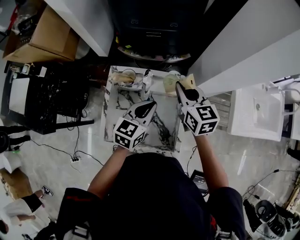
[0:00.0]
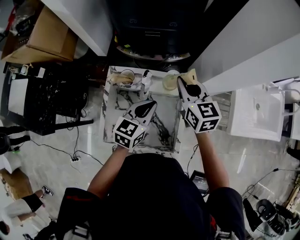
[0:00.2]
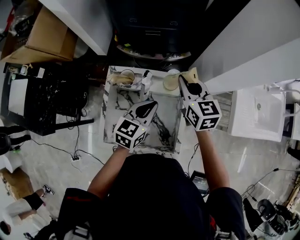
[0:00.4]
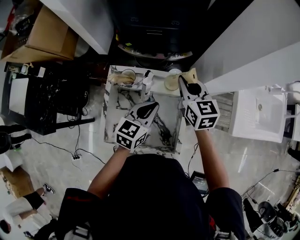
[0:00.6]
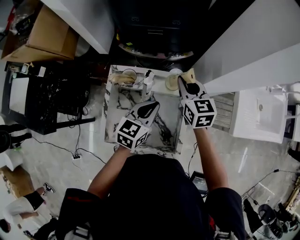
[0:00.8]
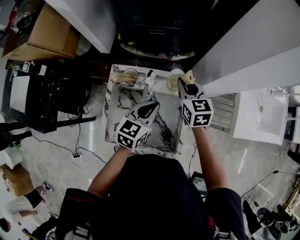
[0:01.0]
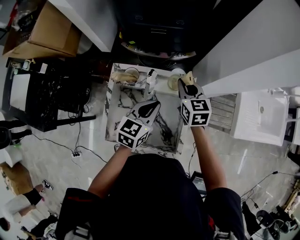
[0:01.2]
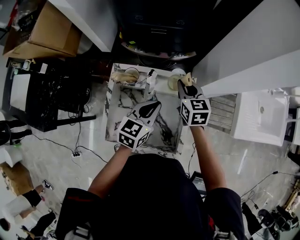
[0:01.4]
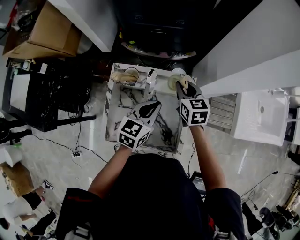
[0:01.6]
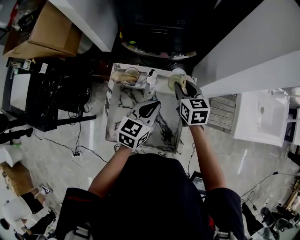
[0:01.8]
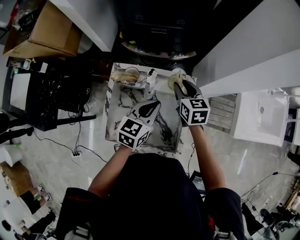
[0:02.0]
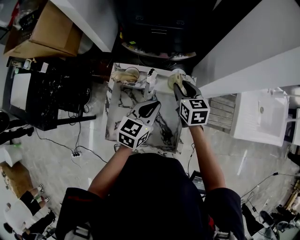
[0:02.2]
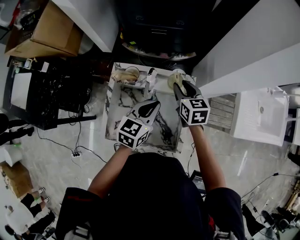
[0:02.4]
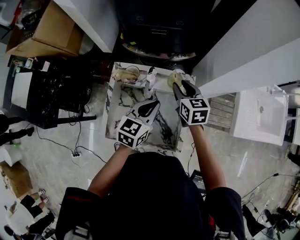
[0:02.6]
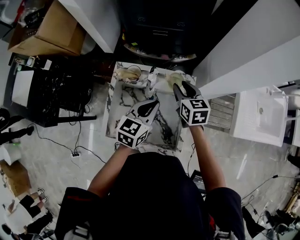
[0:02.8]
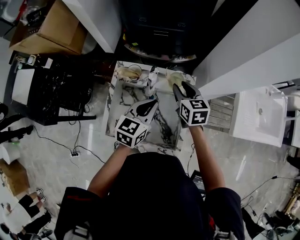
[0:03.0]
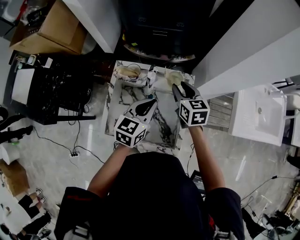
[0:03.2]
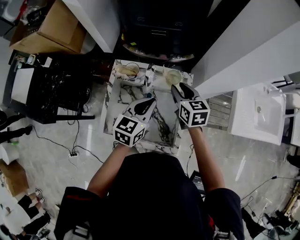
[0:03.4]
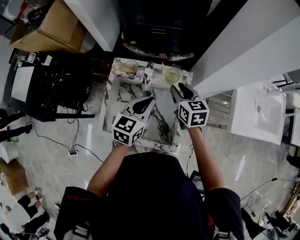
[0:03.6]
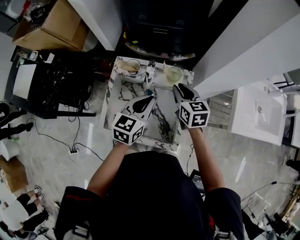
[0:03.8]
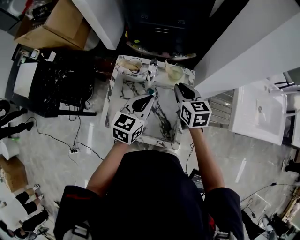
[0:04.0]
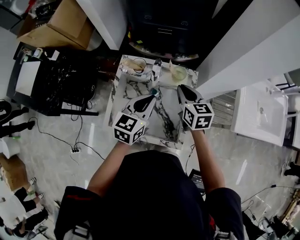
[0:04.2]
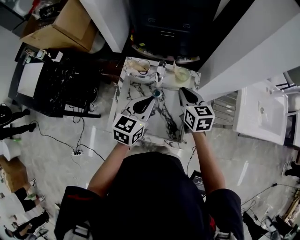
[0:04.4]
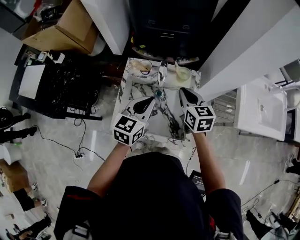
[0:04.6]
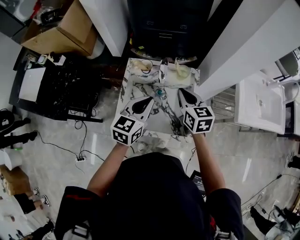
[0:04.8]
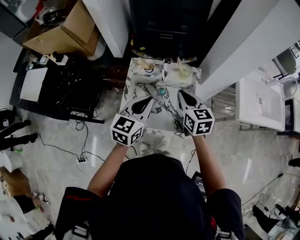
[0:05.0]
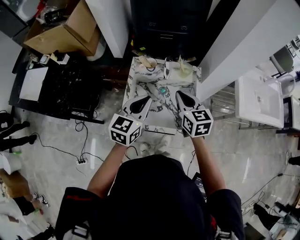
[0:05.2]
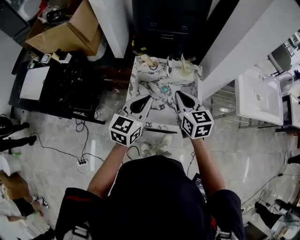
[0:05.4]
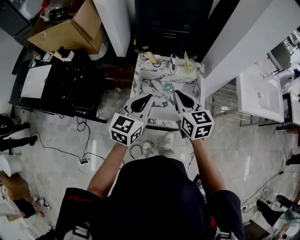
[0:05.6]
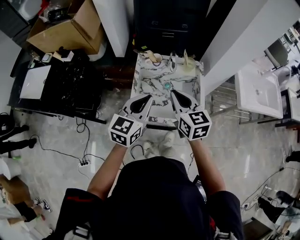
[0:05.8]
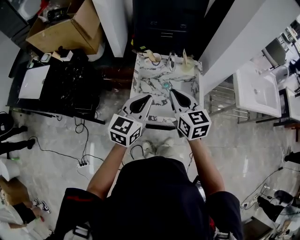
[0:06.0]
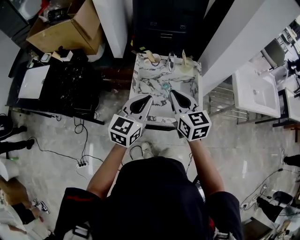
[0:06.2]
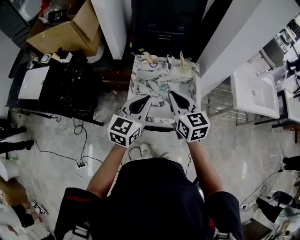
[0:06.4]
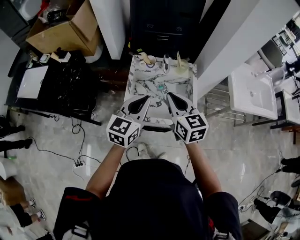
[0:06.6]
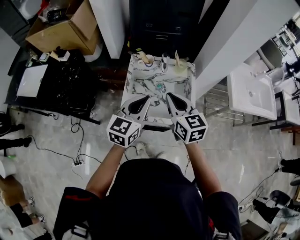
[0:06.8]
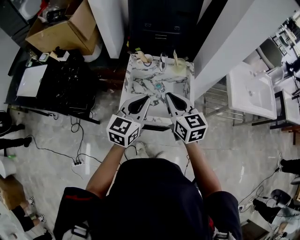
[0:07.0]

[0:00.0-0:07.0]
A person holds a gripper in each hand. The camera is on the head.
0:00.0 to 0:01.4: The right gripper travels downward by some 10 cm.
0:01.4 to 0:02.8: The grippers stay close to where they were, moving slightly.
0:02.8 to 0:04.2: The left gripper changes place by about 5 cm; the right gripper moves backward, some 5 cm.
0:04.2 to 0:05.6: Both grippers move backward, to the left and upward, some 20 cm.
0:05.6 to 0:07.0: The grippers make only small movements.

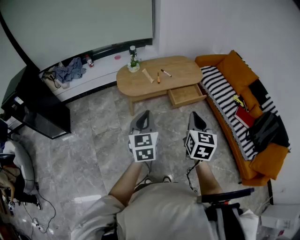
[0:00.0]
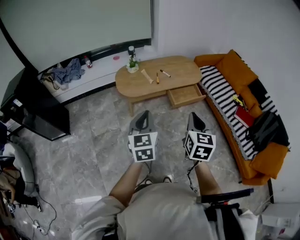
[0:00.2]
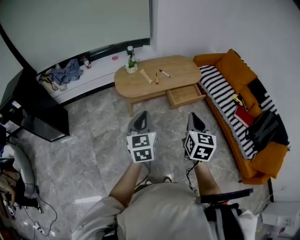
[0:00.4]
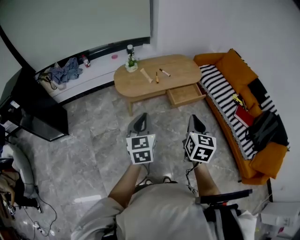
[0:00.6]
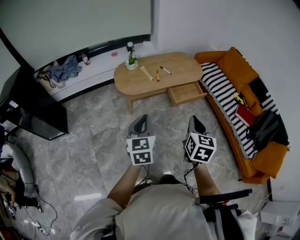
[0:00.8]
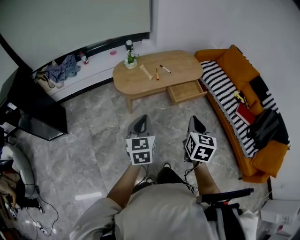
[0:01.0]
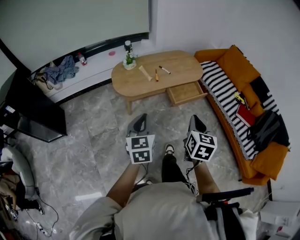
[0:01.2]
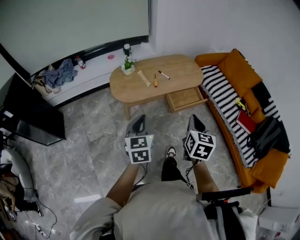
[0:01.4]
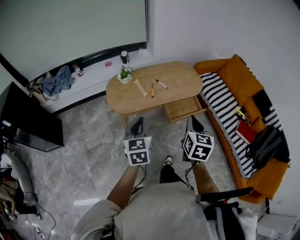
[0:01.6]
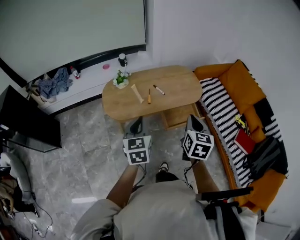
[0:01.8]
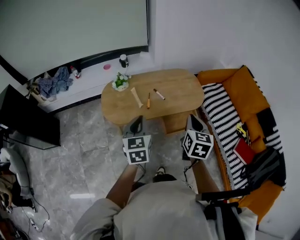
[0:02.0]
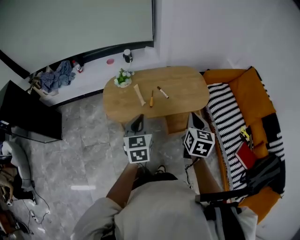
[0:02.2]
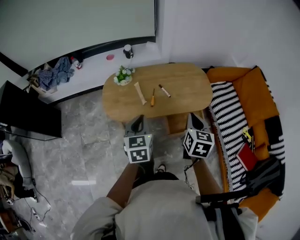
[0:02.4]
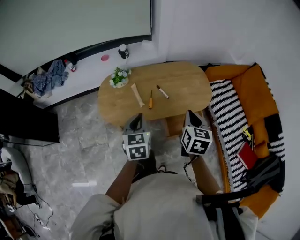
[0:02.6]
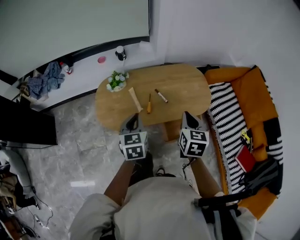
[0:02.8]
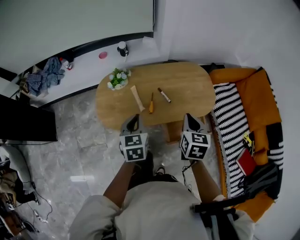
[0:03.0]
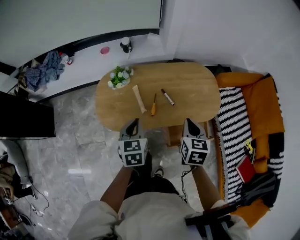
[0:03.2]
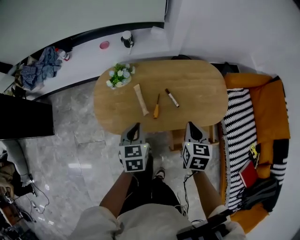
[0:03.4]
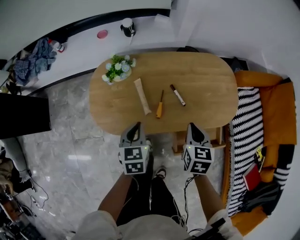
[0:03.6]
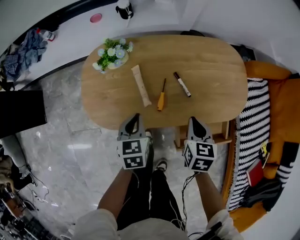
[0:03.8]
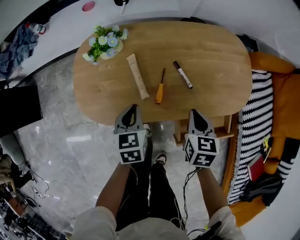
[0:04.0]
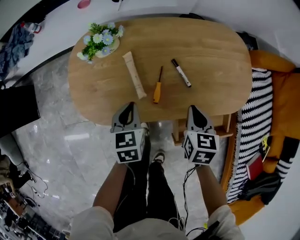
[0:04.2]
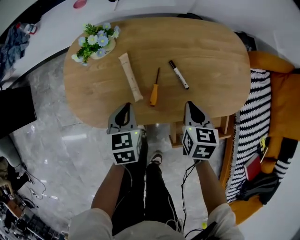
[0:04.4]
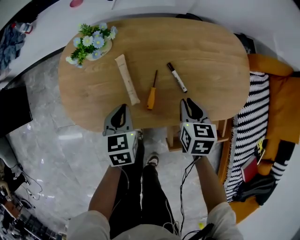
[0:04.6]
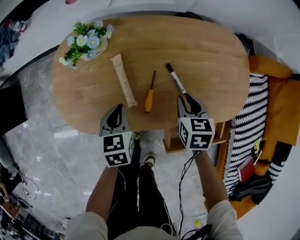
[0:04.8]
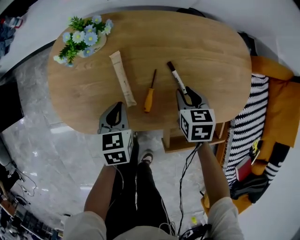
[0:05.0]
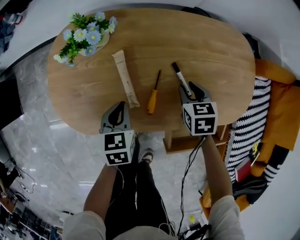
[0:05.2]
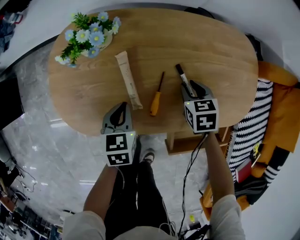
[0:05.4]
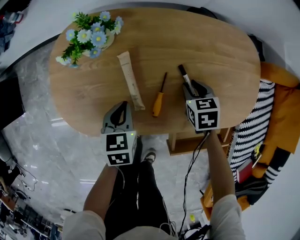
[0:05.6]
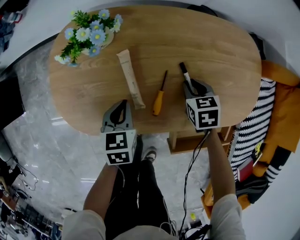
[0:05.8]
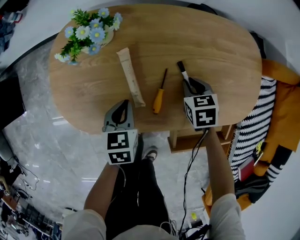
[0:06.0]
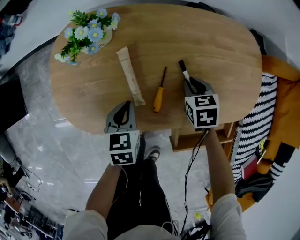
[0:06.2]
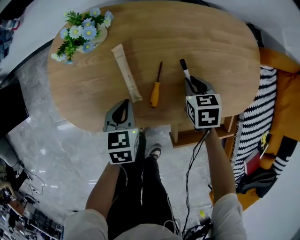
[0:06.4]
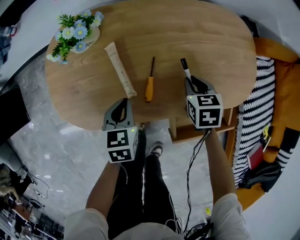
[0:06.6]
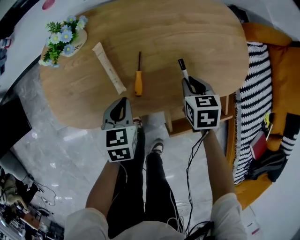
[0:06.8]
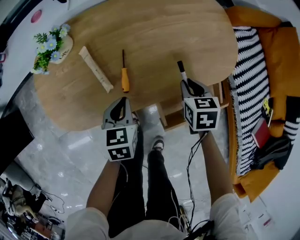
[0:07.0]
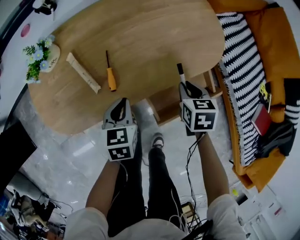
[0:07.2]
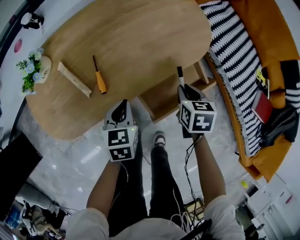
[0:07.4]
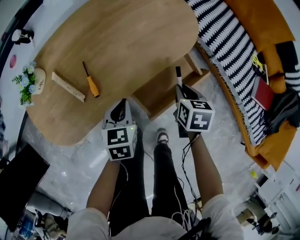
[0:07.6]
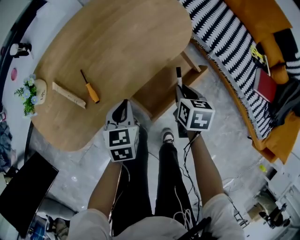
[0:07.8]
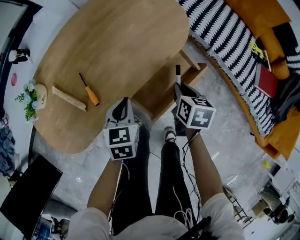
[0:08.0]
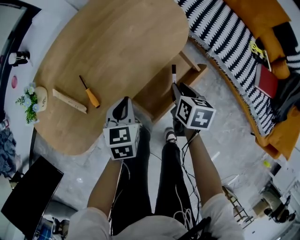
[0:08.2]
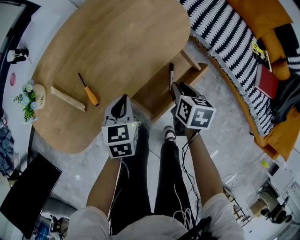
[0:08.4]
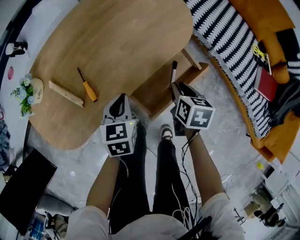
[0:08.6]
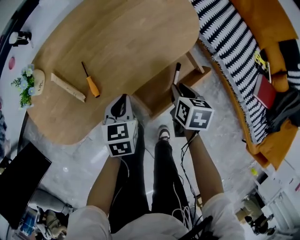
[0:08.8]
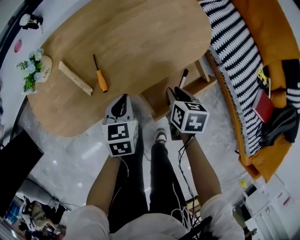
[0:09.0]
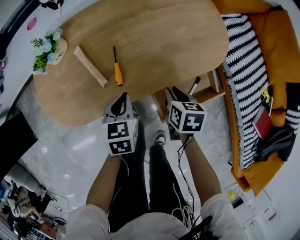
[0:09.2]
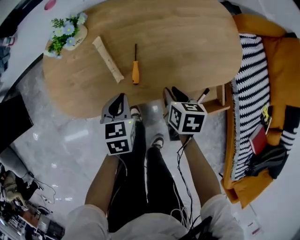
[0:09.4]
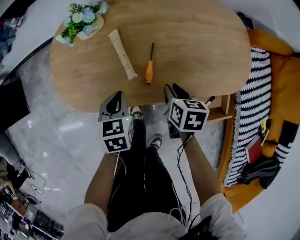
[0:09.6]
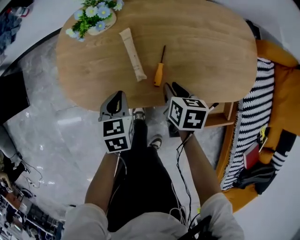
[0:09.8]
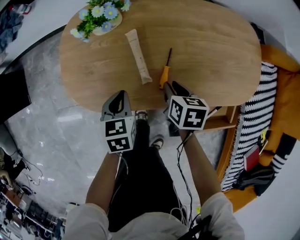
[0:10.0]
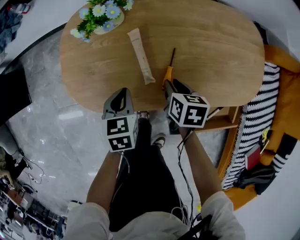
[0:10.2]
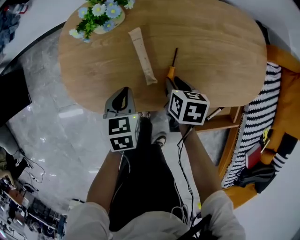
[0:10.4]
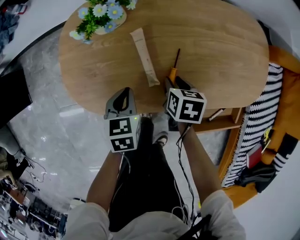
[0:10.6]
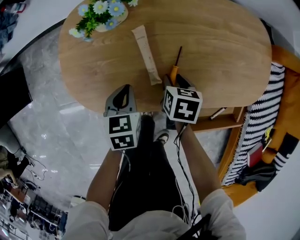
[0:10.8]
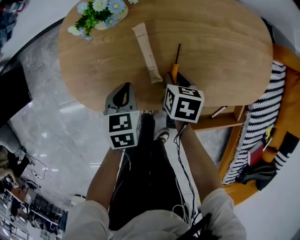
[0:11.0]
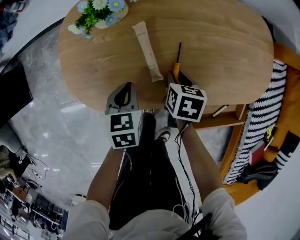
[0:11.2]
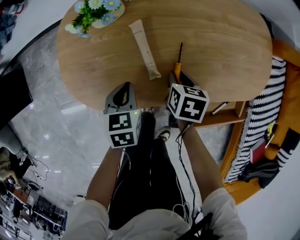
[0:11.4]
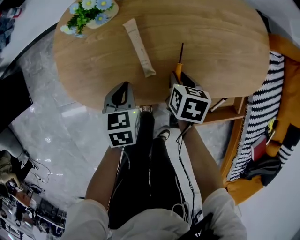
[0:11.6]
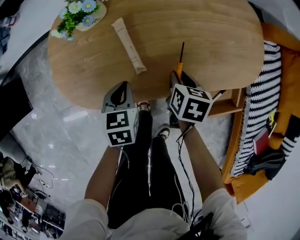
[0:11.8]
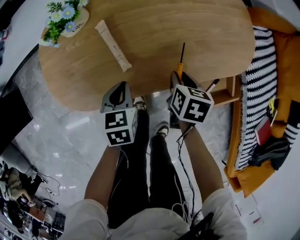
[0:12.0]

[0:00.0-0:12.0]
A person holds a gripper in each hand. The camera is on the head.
0:00.0 to 0:01.6: The grippers both shift forward by approximately 20 cm.
0:01.6 to 0:03.0: Both grippers move forward, about 35 cm.
0:03.0 to 0:04.4: The left gripper moves downward, roughly 30 cm; the right gripper is displaced downward and forward by about 35 cm.
0:04.4 to 0:06.0: The right gripper goes roughly 15 cm downward and forward, and rotates approximately 20 degrees. The left gripper travels downward by roughly 10 cm.
0:06.0 to 0:07.6: The right gripper changes place by about 35 cm, and rotates around the line of its fingers by some 50 degrees, clockwise from behind; the left gripper shifts by roughly 25 cm, and rotates approximately 30 degrees.
0:07.6 to 0:09.0: The right gripper is displaced to the left by approximately 5 cm.
0:09.0 to 0:10.4: The left gripper ends up roughly 25 cm from where it was, and rotates approximately 30 degrees, while the right gripper moves roughly 30 cm, and rotates roughly 30 degrees.
0:10.4 to 0:12.0: The right gripper shifts some 10 cm to the right and backward, while the left gripper heads to the right, covering roughly 10 cm.

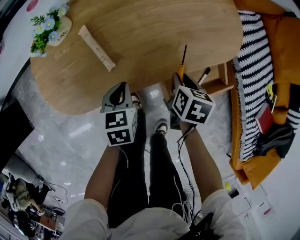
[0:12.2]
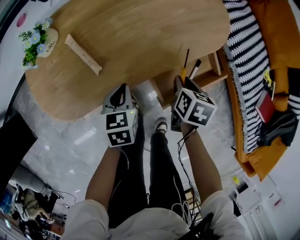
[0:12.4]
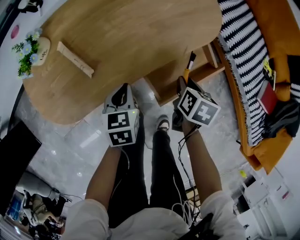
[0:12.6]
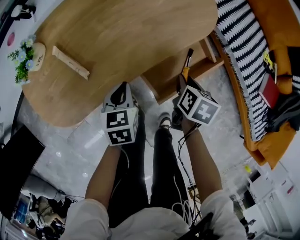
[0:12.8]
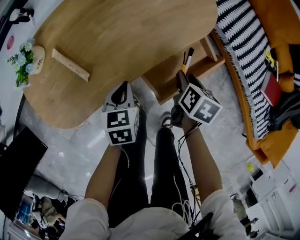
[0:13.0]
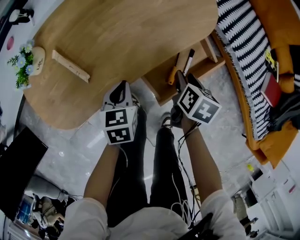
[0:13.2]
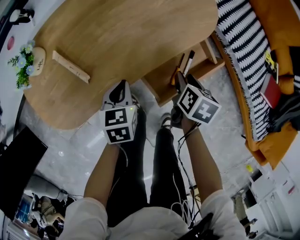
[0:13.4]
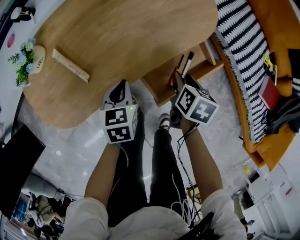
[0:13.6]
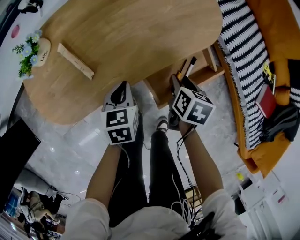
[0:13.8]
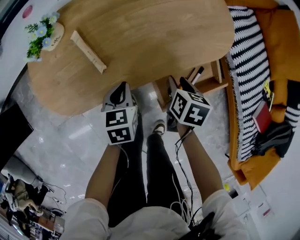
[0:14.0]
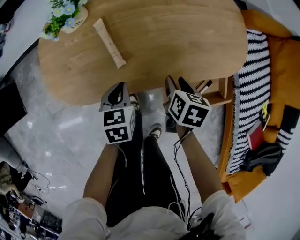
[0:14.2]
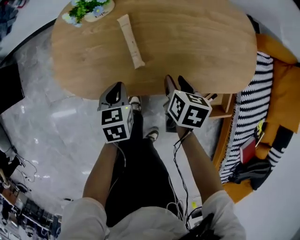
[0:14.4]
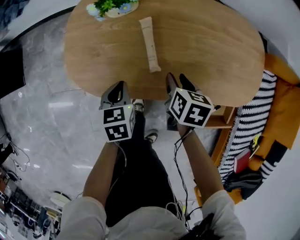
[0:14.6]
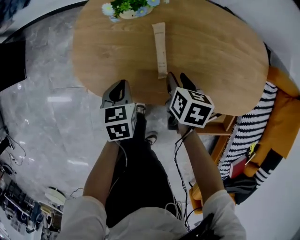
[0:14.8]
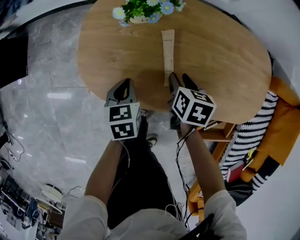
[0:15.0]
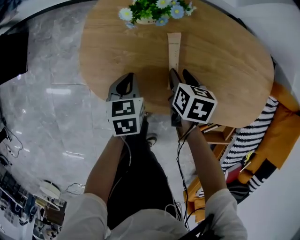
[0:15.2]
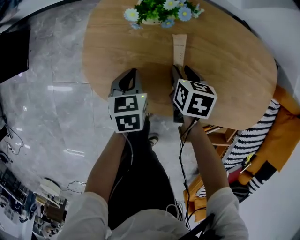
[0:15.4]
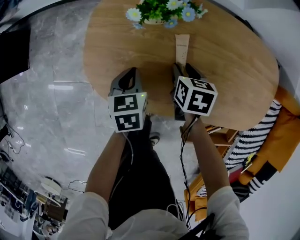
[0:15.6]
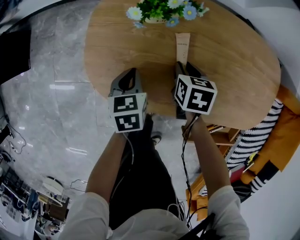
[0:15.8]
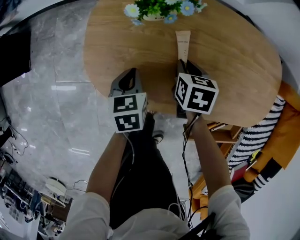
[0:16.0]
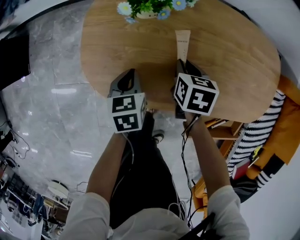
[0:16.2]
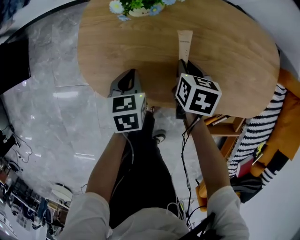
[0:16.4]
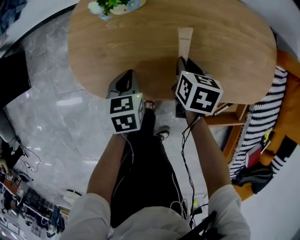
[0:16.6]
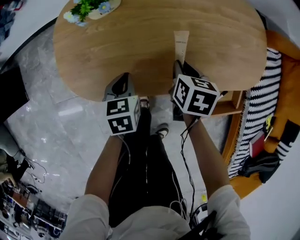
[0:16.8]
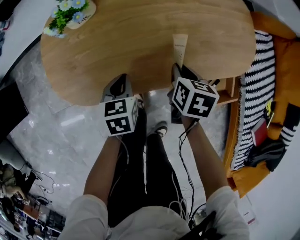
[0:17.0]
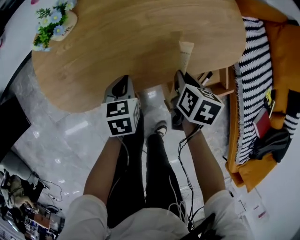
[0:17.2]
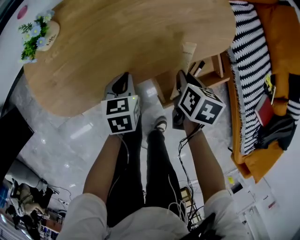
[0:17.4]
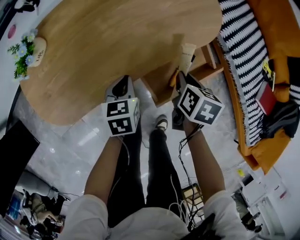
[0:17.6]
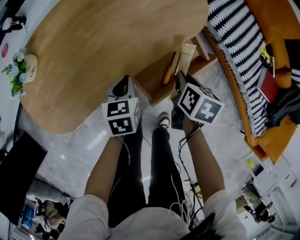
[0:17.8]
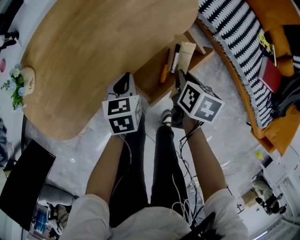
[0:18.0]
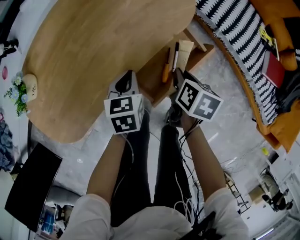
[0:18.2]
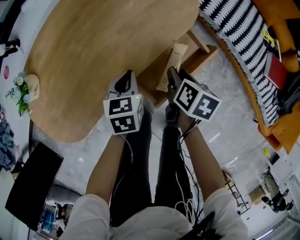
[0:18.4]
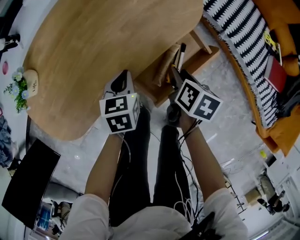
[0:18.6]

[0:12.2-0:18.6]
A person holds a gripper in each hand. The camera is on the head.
0:12.2 to 0:13.8: Both grippers travel together to the right, some 10 cm.
0:13.8 to 0:15.4: The right gripper changes place by approximately 40 cm, and rotates around the line of its fingers by roughly 40 degrees, counterclockwise from behind, while the left gripper shifts by some 30 cm, and changes its angle by approximately 40 degrees.
0:15.4 to 0:17.0: The left gripper shifts by about 15 cm, and changes its angle by about 20 degrees. Meanwhile the right gripper changes place by some 20 cm, rotates approximately 30 degrees, and closes up.
0:17.0 to 0:18.6: The left gripper changes place by about 25 cm, and changes its angle by some 30 degrees; the right gripper changes place by about 25 cm, rolls clockwise, seen from behind, by approximately 40 degrees, and opens.
